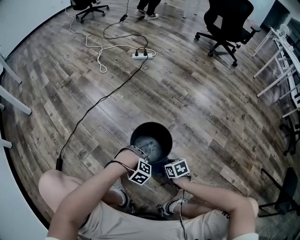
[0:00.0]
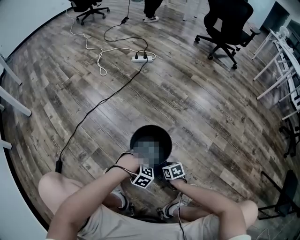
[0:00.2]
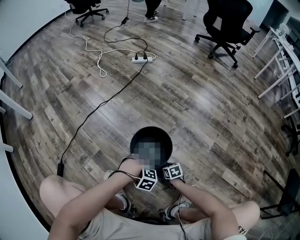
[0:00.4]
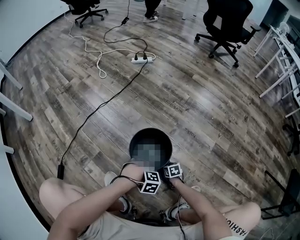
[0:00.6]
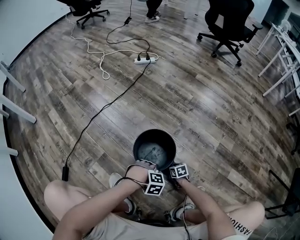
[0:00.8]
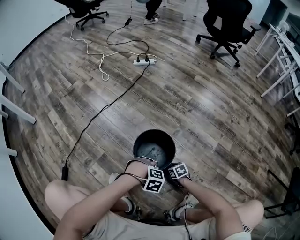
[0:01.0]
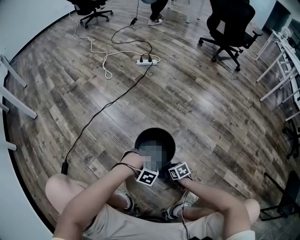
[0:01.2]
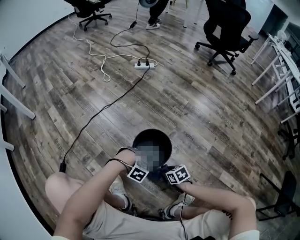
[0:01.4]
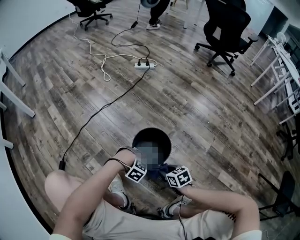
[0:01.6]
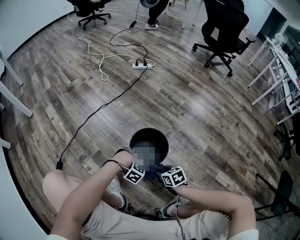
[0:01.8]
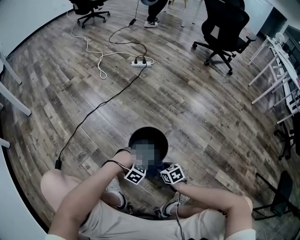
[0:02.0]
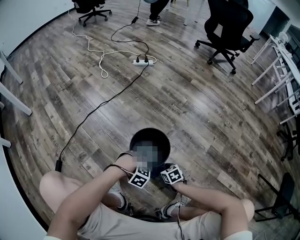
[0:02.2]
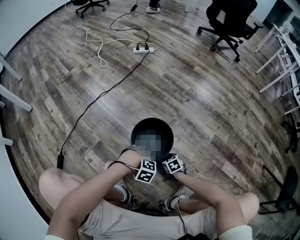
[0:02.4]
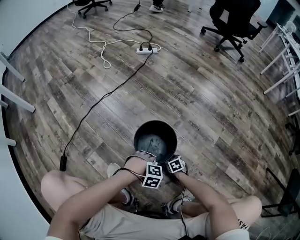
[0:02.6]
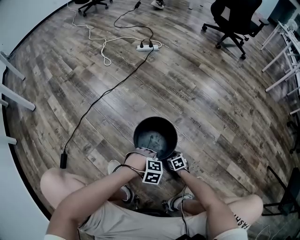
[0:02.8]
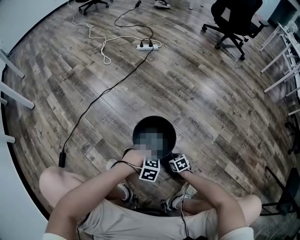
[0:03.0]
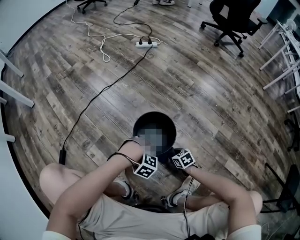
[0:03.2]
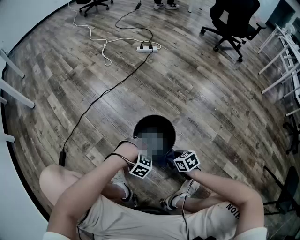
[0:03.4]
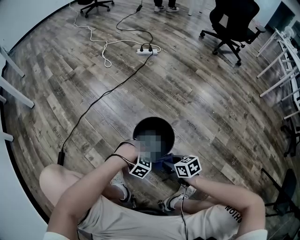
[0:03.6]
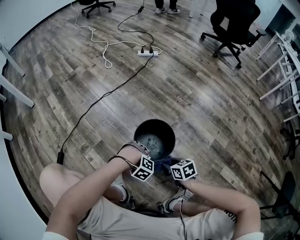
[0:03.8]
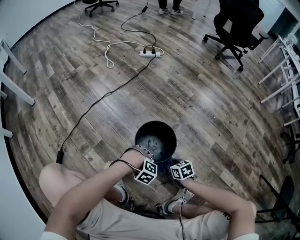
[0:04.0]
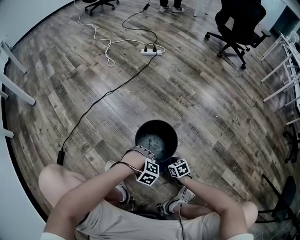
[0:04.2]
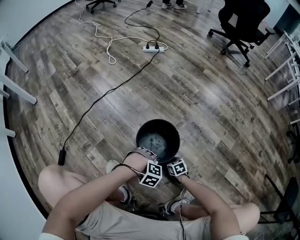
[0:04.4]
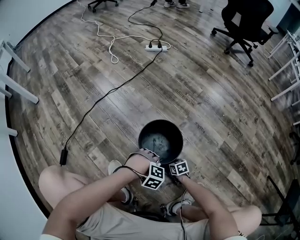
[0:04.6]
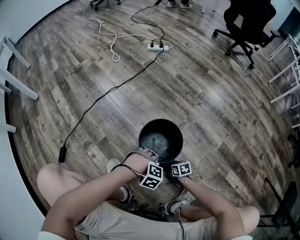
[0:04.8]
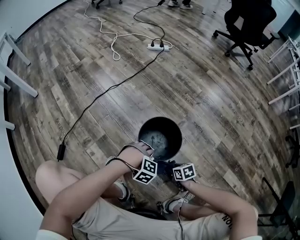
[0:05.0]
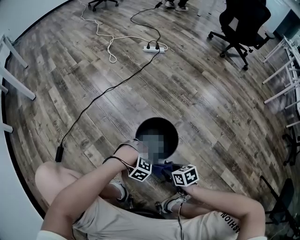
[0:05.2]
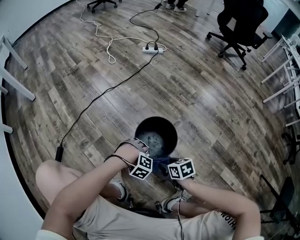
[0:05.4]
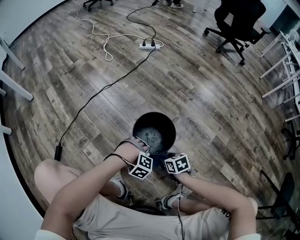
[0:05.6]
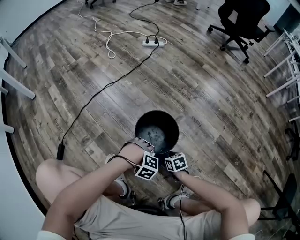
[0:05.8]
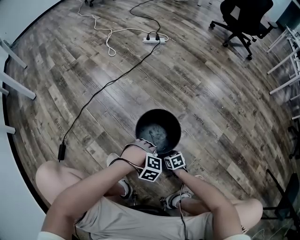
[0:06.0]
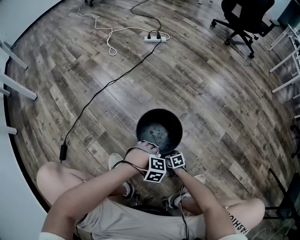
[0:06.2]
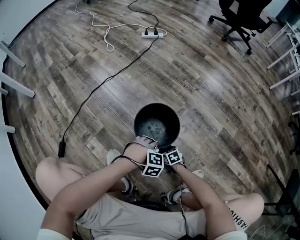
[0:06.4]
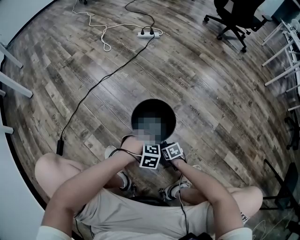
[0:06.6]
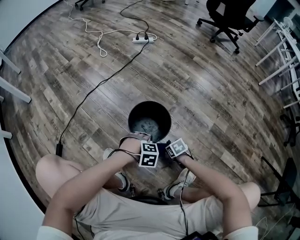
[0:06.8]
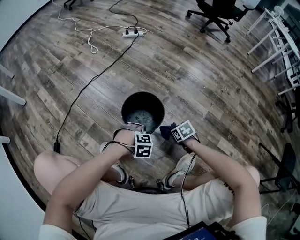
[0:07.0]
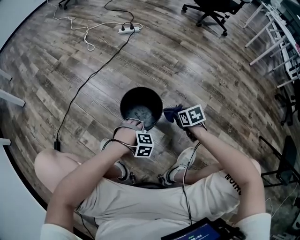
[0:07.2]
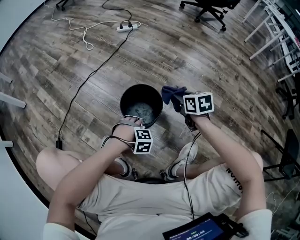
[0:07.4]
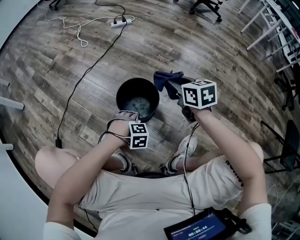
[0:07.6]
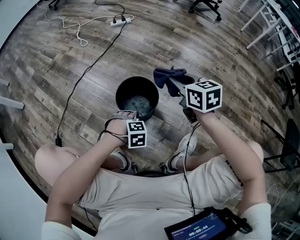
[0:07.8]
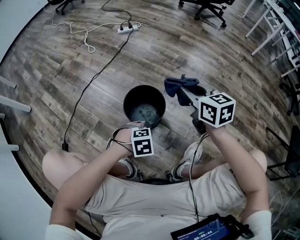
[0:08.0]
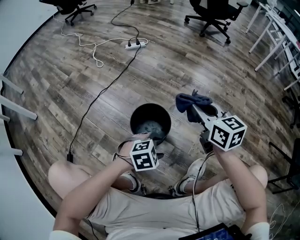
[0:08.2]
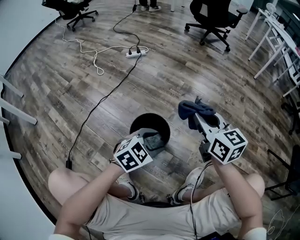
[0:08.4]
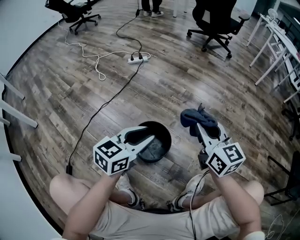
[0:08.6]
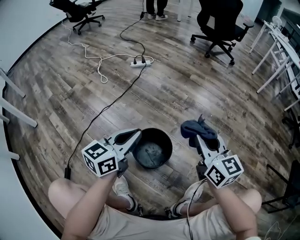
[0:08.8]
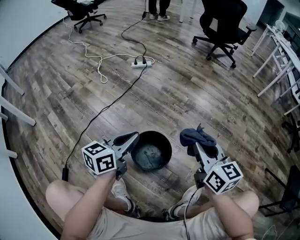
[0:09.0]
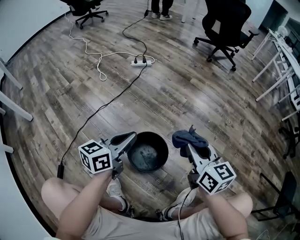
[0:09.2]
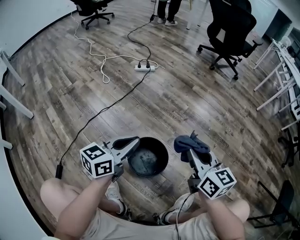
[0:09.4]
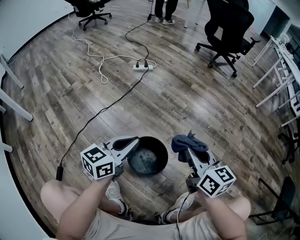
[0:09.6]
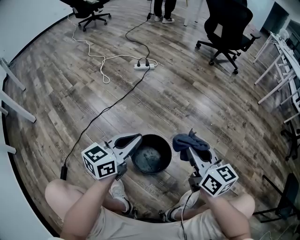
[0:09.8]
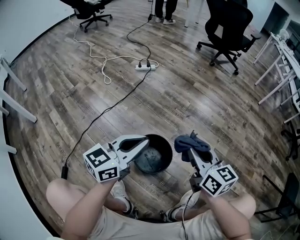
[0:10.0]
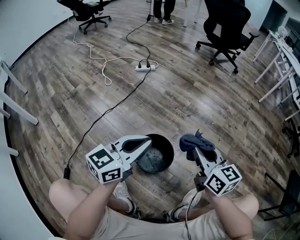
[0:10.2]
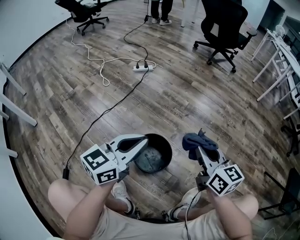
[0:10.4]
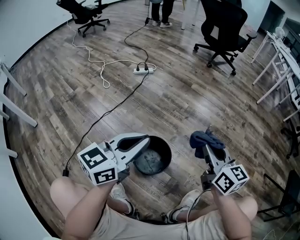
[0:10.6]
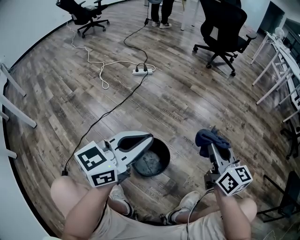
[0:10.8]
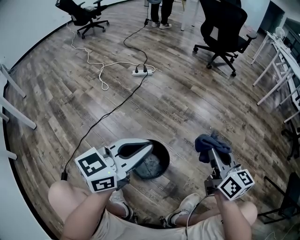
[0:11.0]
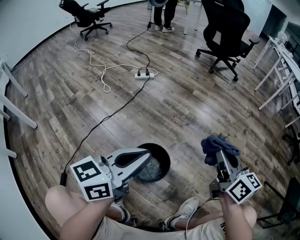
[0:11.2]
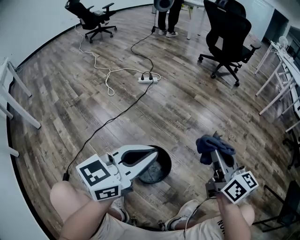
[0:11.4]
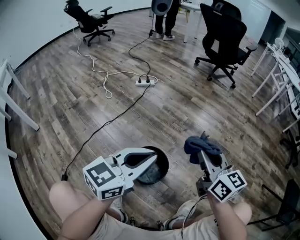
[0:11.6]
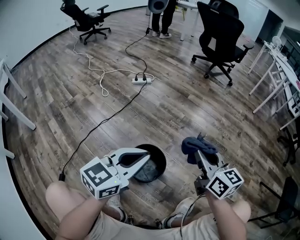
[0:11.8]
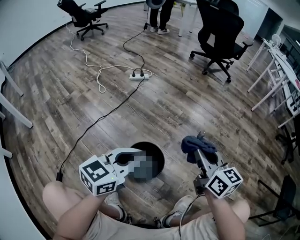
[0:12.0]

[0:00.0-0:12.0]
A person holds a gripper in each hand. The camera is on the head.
0:00.0 to 0:01.6: The right gripper moves some 15 cm downward and comes back.
0:01.6 to 0:03.0: The right gripper heads downward, covering approximately 20 cm.
0:03.0 to 0:04.4: The right gripper moves some 20 cm upward and comes back.
0:04.4 to 0:06.0: The right gripper goes upward and returns, approximately 20 cm each way.
0:06.0 to 0:07.6: The right gripper goes approximately 40 cm upward, and rotates about 30 degrees.
0:07.6 to 0:09.0: The right gripper is displaced upward by about 10 cm, and rotates roughly 20 degrees.

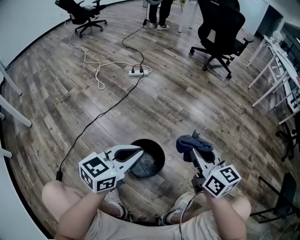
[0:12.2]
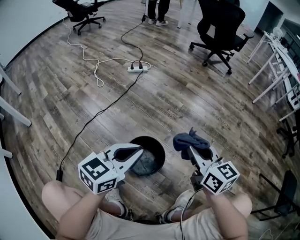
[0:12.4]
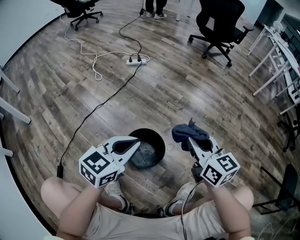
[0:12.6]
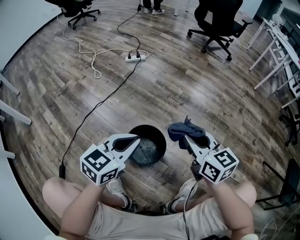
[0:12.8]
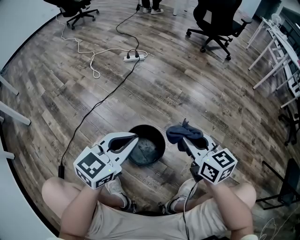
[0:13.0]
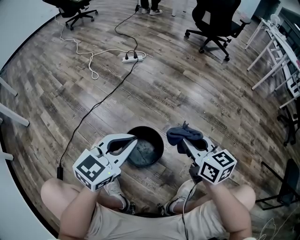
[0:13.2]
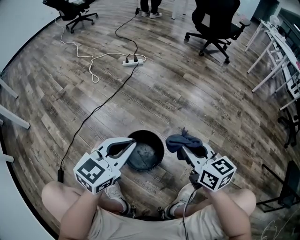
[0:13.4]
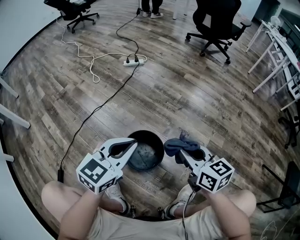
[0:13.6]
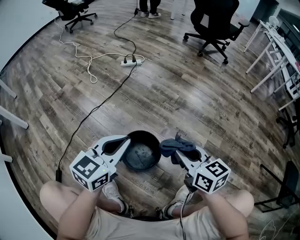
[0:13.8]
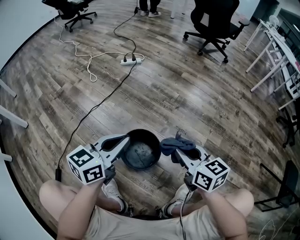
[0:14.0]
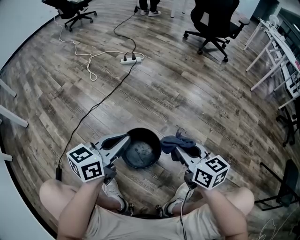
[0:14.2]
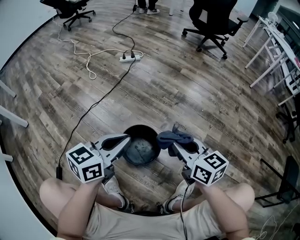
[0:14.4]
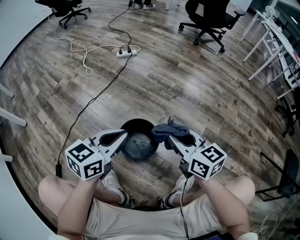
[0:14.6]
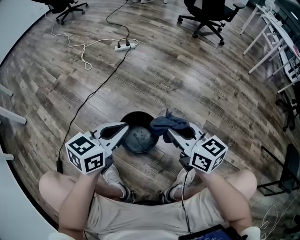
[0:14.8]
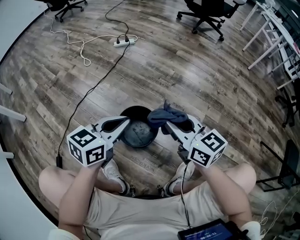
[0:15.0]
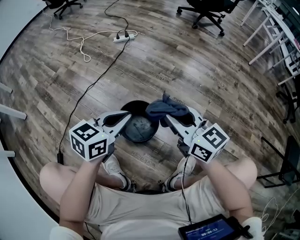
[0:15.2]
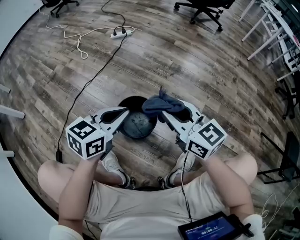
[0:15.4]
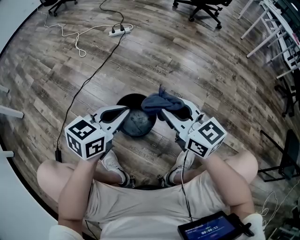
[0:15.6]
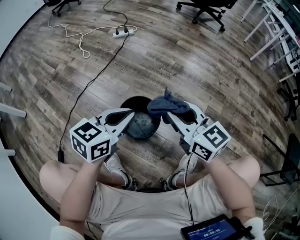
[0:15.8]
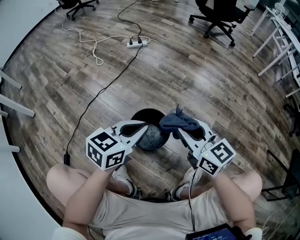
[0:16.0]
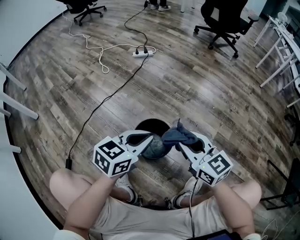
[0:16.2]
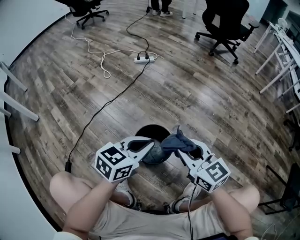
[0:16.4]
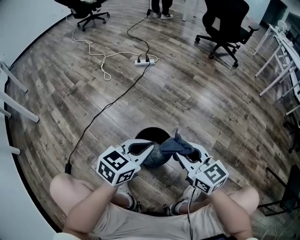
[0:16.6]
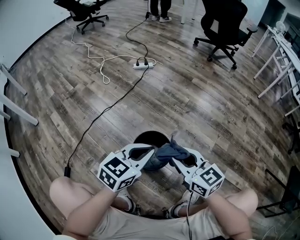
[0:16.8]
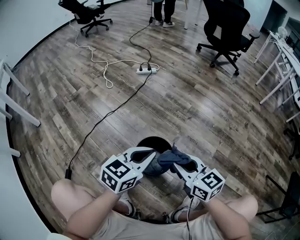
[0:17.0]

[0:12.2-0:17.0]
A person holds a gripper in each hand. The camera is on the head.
0:12.2 to 0:13.8: The right gripper moves downward, about 5 cm.
0:13.8 to 0:15.4: The right gripper moves roughly 5 cm.
0:15.4 to 0:17.0: The right gripper ends up about 5 cm from where it was.

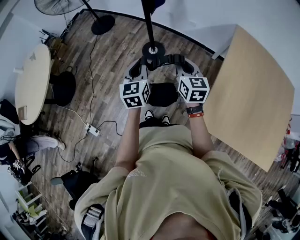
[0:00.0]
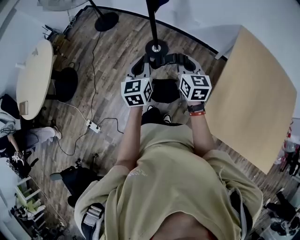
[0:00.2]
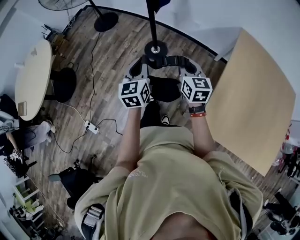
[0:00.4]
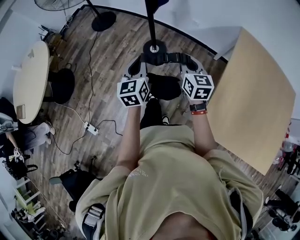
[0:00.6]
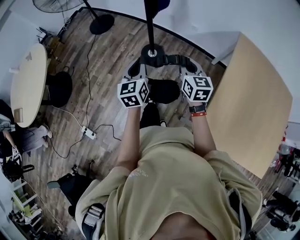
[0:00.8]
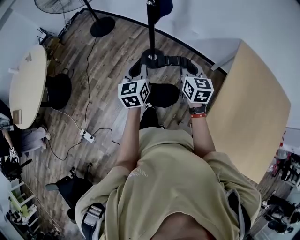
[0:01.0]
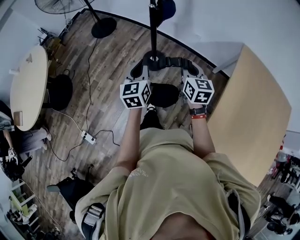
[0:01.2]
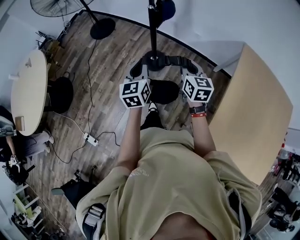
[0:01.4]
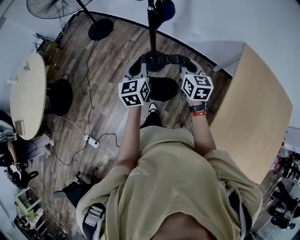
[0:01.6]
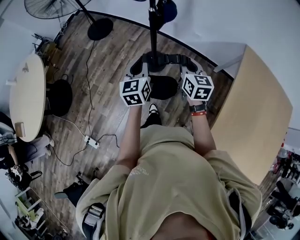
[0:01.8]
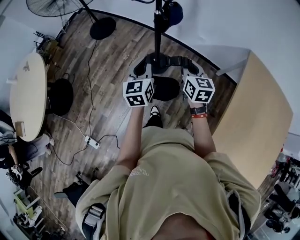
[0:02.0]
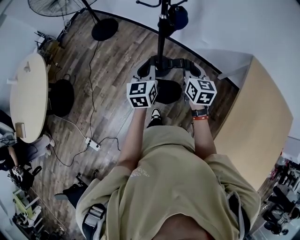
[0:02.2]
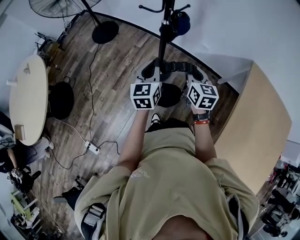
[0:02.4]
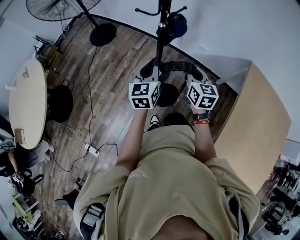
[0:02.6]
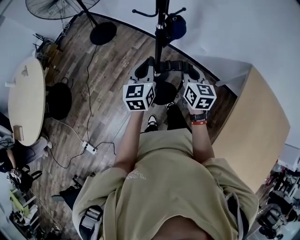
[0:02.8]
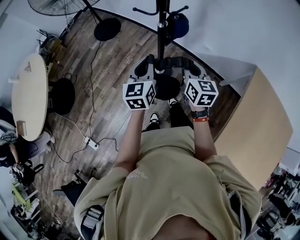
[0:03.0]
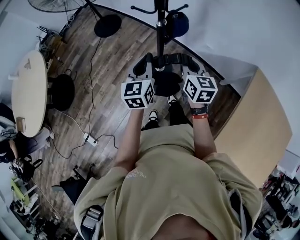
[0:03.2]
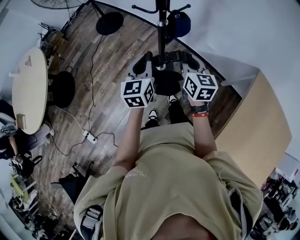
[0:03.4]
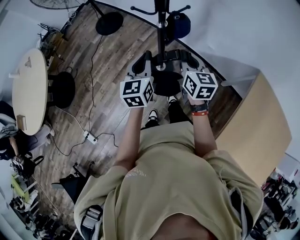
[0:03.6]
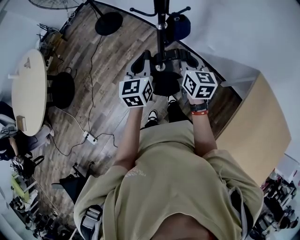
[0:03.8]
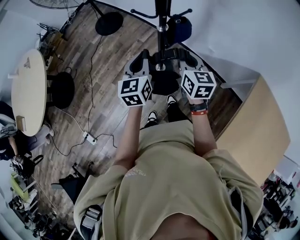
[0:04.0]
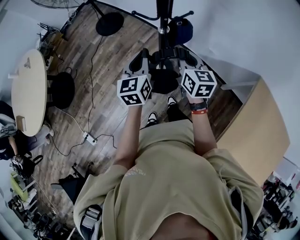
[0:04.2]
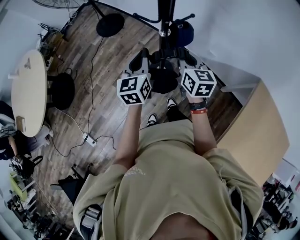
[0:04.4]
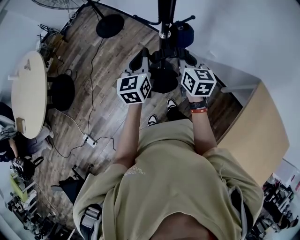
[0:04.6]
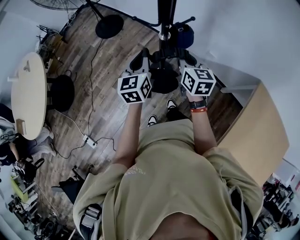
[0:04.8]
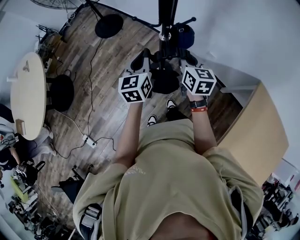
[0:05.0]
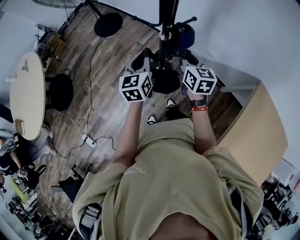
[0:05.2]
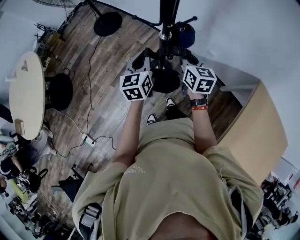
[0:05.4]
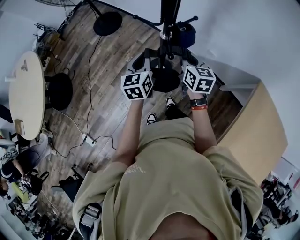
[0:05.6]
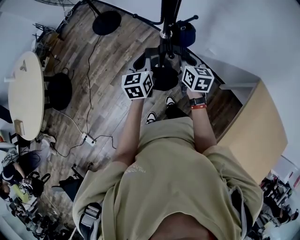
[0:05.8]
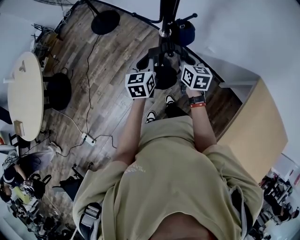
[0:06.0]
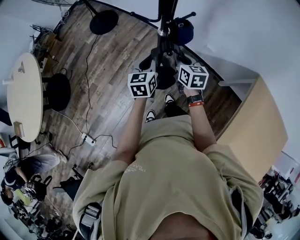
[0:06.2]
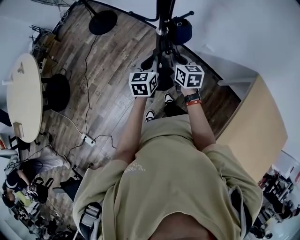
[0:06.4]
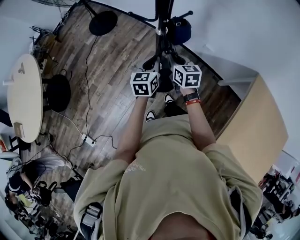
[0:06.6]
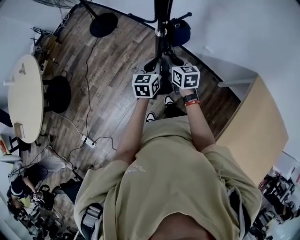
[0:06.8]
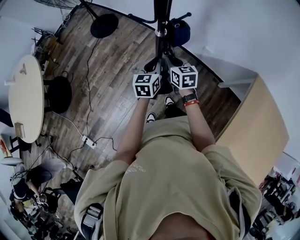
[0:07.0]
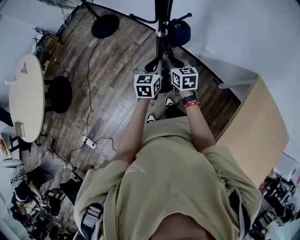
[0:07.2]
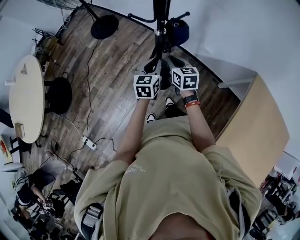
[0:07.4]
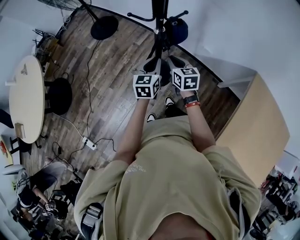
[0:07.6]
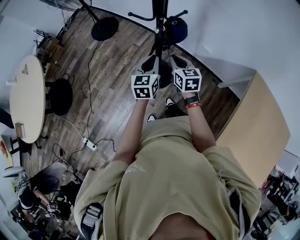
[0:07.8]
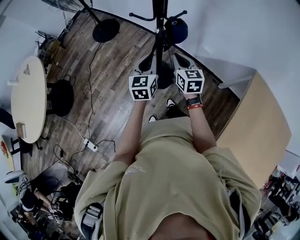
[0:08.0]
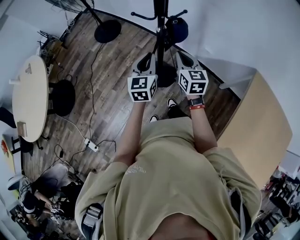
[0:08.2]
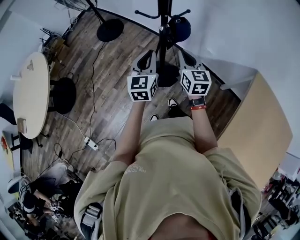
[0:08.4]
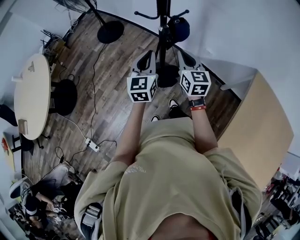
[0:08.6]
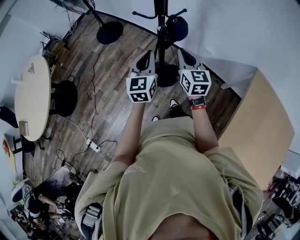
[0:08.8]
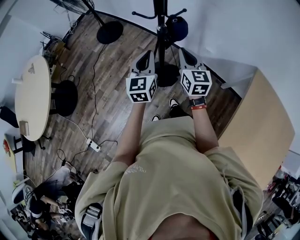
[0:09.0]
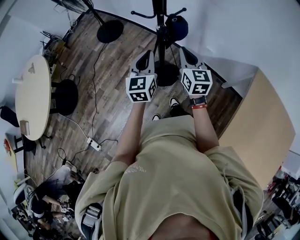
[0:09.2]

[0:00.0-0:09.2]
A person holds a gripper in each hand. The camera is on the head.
0:00.0 to 0:01.6: The two grippers go approximately 25 cm forward.
0:01.6 to 0:03.0: The grippers both shift forward by approximately 20 cm.
0:03.0 to 0:04.6: Both grippers travel together forward, roughly 15 cm.
0:04.6 to 0:06.2: Both grippers move downward, roughly 10 cm.
0:06.2 to 0:07.6: The left gripper ends up roughly 5 cm from where it was.
0:07.6 to 0:09.2: Both grippers move upward and backward, roughly 15 cm. The right gripper turns by roughly 20 degrees.
